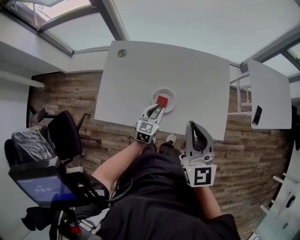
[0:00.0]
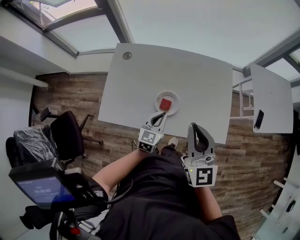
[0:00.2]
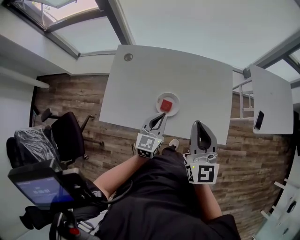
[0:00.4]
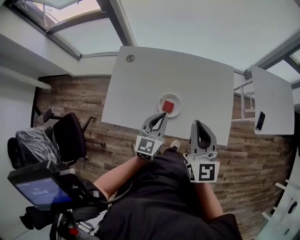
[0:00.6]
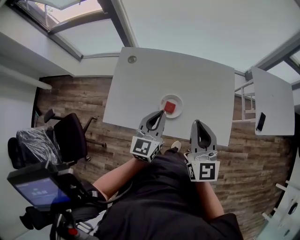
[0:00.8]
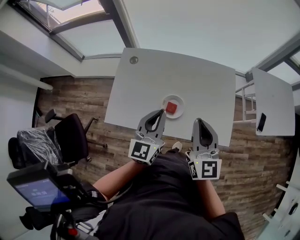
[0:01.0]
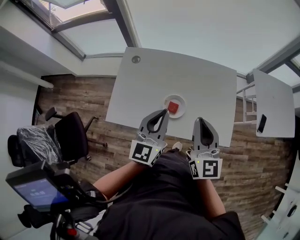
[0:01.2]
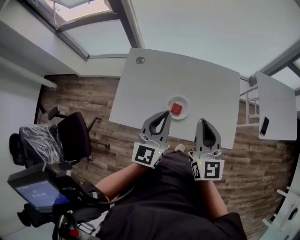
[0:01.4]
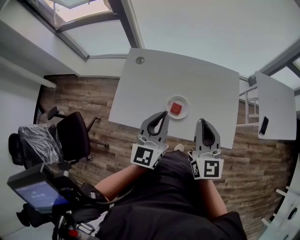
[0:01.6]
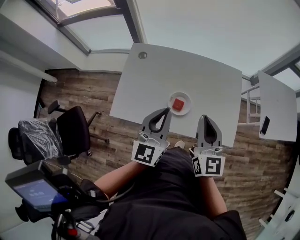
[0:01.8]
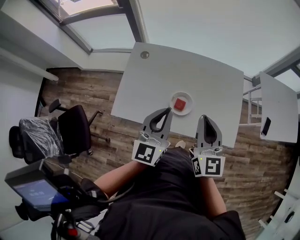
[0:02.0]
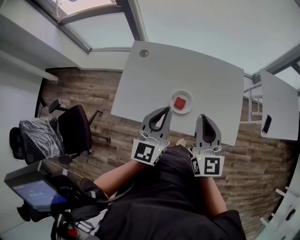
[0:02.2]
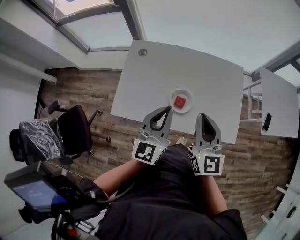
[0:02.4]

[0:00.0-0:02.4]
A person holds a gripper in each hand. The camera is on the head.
0:00.0 to 0:01.2: The left gripper is displaced upward by about 20 cm, and turns by about 20 degrees.
0:01.2 to 0:02.4: The left gripper changes place by some 5 cm, while the right gripper goes approximately 5 cm to the left.

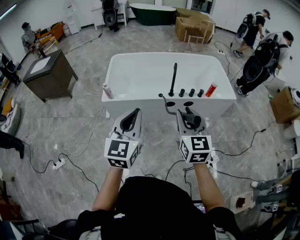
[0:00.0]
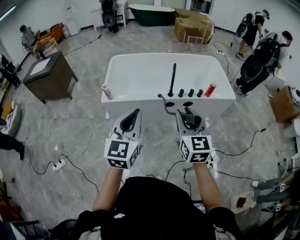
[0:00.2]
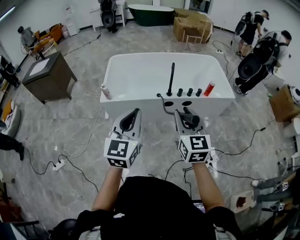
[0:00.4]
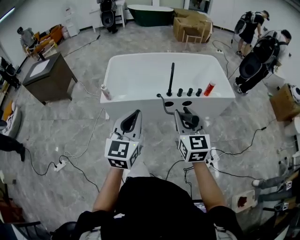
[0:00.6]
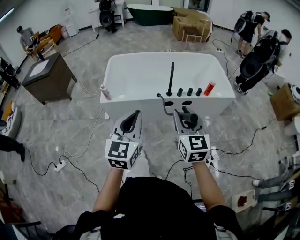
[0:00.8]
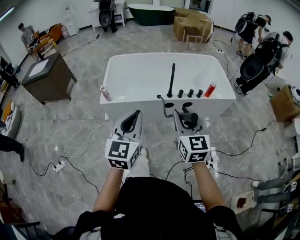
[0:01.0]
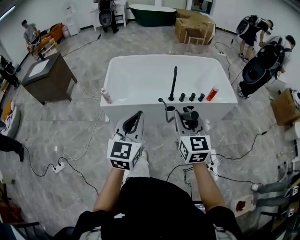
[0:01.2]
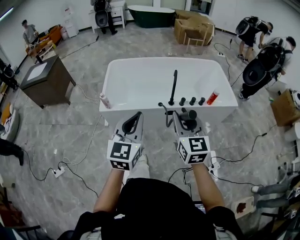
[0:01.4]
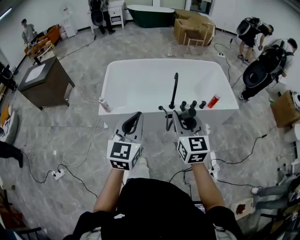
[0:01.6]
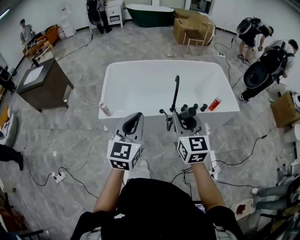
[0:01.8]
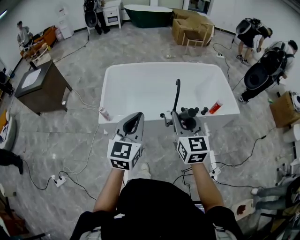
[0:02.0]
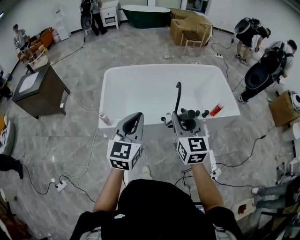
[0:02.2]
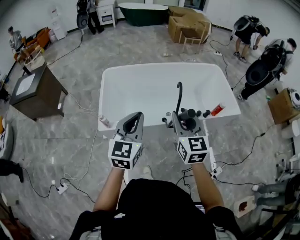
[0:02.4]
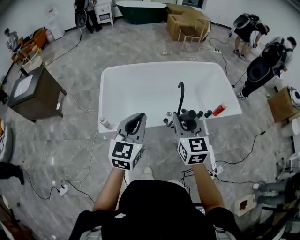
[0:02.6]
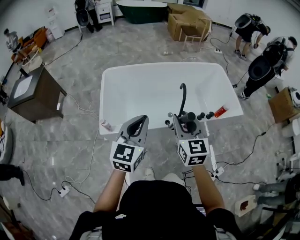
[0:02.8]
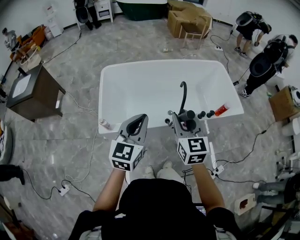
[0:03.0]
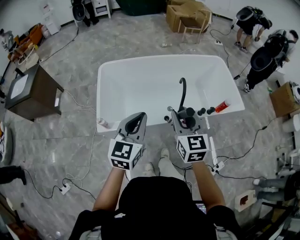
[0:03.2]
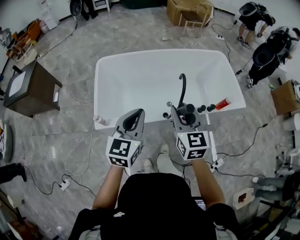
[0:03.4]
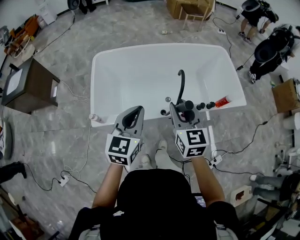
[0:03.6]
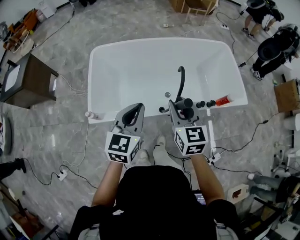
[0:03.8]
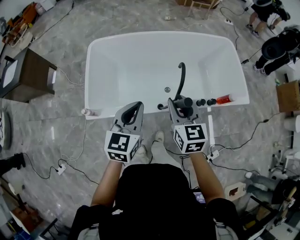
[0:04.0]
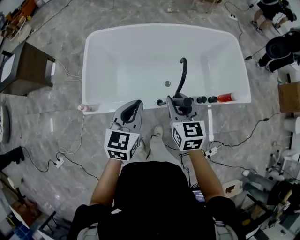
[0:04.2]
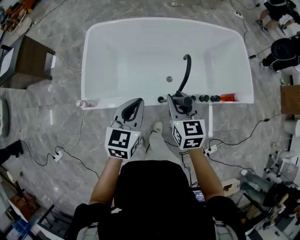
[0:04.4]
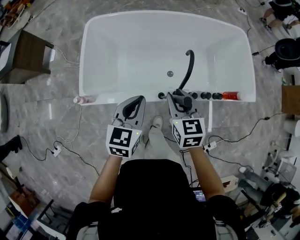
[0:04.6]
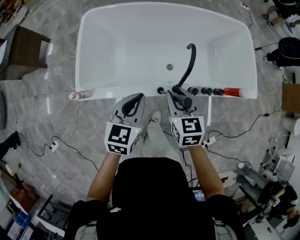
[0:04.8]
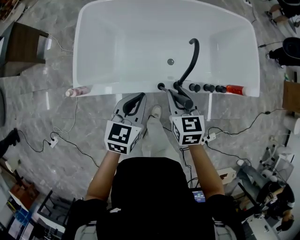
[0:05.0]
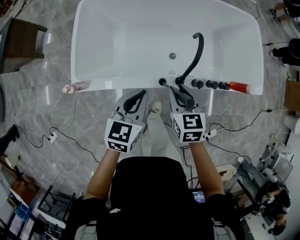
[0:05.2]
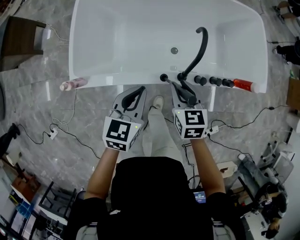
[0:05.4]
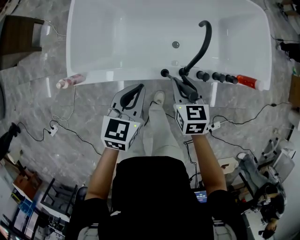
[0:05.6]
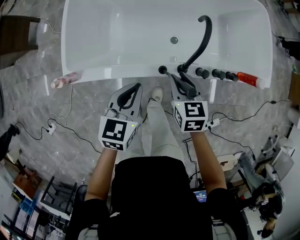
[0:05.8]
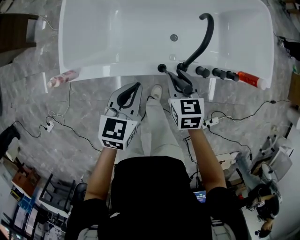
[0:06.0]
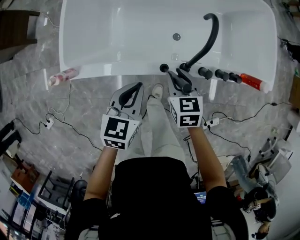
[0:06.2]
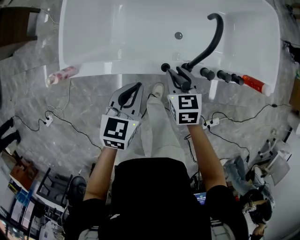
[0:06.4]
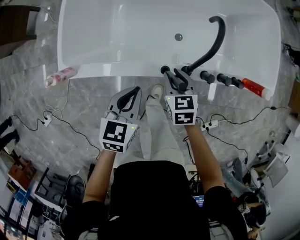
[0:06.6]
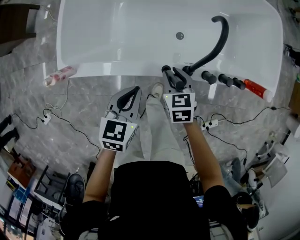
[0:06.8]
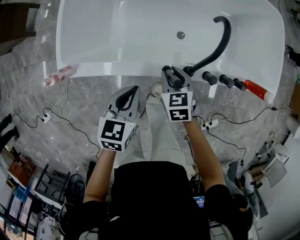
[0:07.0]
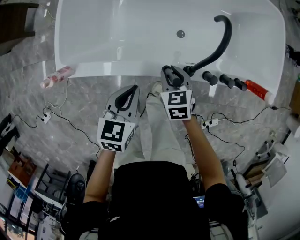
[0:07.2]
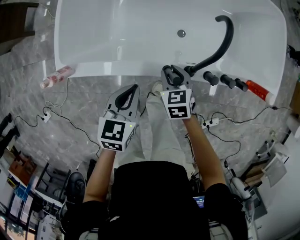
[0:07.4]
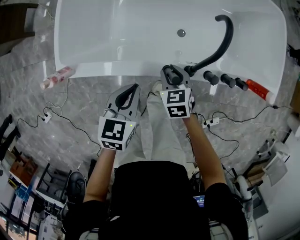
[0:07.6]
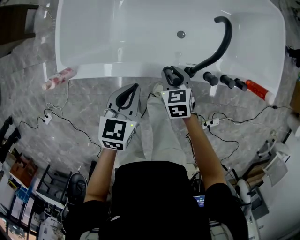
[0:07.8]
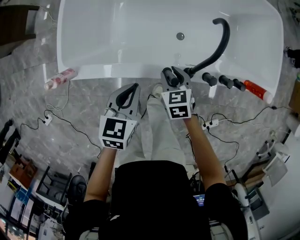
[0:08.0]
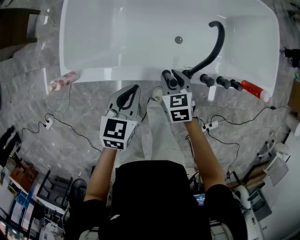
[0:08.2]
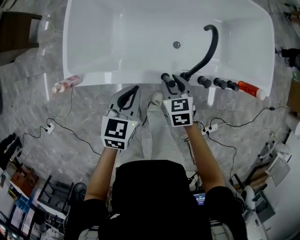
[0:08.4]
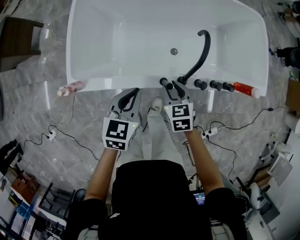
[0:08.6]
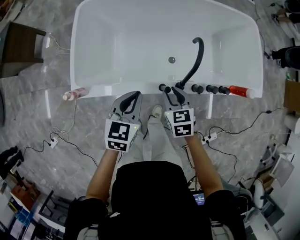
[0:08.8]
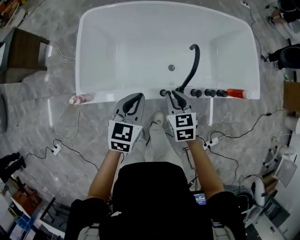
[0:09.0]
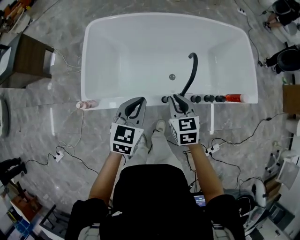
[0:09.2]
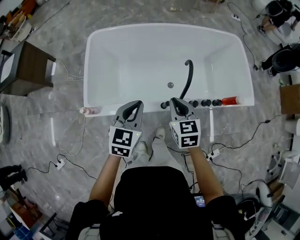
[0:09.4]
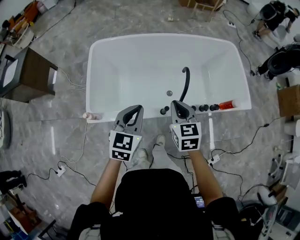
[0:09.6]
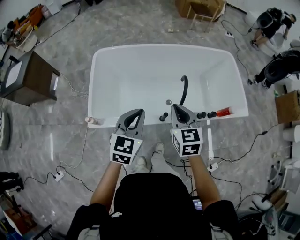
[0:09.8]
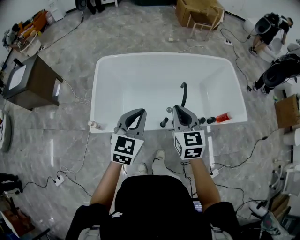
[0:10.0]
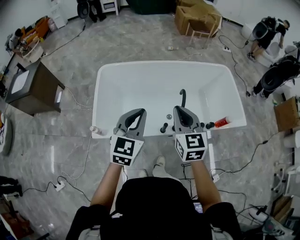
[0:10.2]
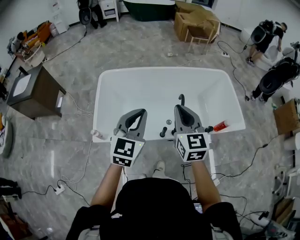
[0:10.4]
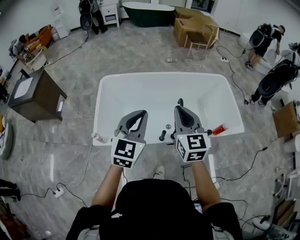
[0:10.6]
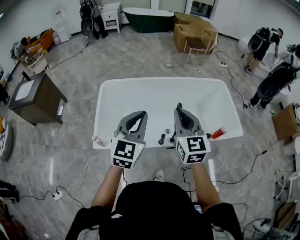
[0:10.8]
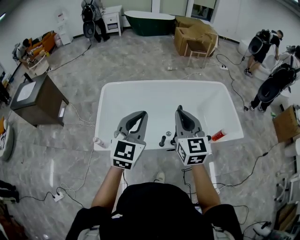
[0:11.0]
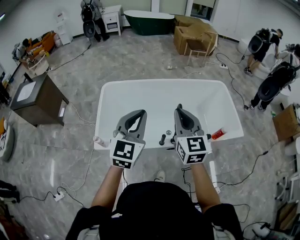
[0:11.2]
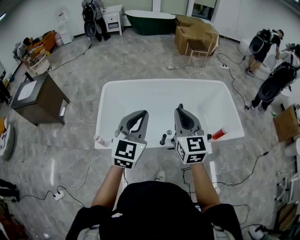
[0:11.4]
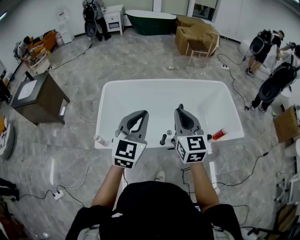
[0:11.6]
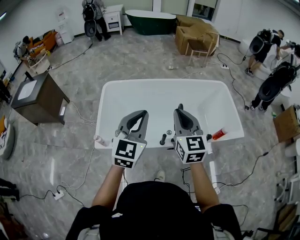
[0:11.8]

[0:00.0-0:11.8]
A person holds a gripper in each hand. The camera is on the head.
0:00.0 to 0:01.4: Both grippers travel together forward, about 10 cm.
0:01.4 to 0:03.0: The two grippers go some 30 cm forward and to the left.
0:03.0 to 0:04.4: Both grippers move forward and downward, roughly 25 cm.
0:04.4 to 0:06.0: The two grippers go about 20 cm downward.
0:06.0 to 0:07.4: The right gripper is displaced downward by about 10 cm; the left gripper travels downward by some 5 cm.
0:07.4 to 0:08.8: The two grippers go roughly 15 cm upward.
0:08.8 to 0:10.4: The two grippers go approximately 35 cm upward. The left gripper rotates about 30 degrees, while the right gripper tilts its fingers some 40 degrees upward, and closes its fingers.
0:10.4 to 0:11.8: The left gripper moves upward, about 5 cm.

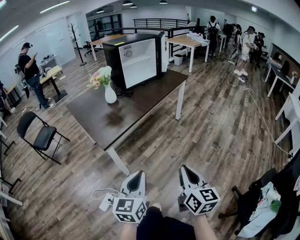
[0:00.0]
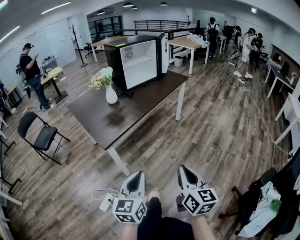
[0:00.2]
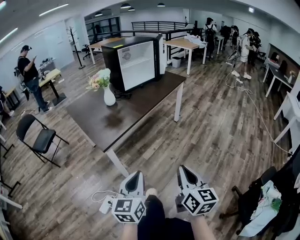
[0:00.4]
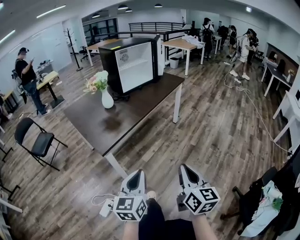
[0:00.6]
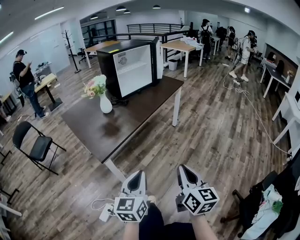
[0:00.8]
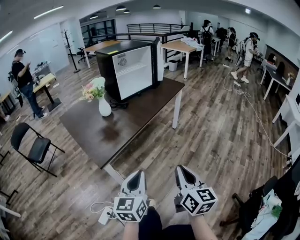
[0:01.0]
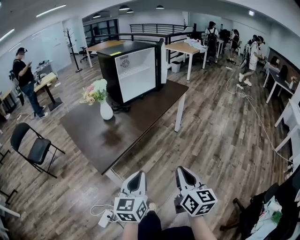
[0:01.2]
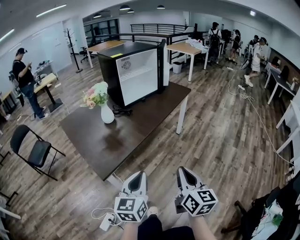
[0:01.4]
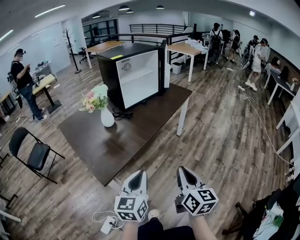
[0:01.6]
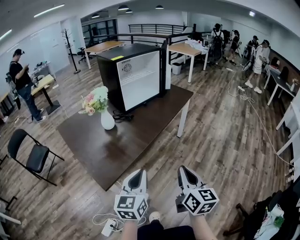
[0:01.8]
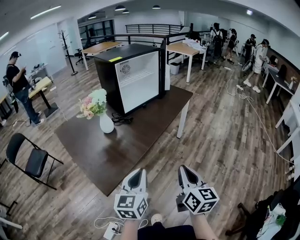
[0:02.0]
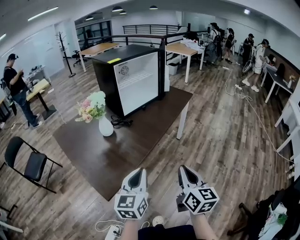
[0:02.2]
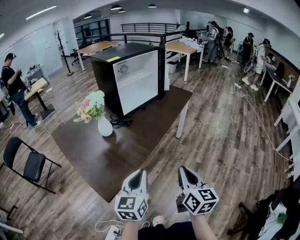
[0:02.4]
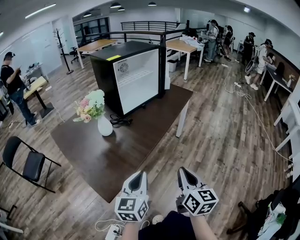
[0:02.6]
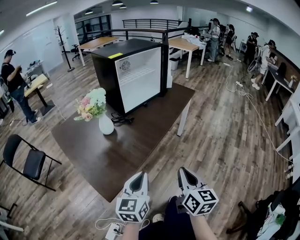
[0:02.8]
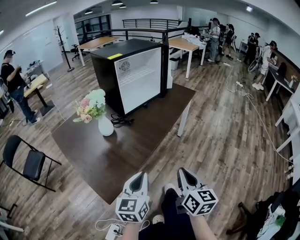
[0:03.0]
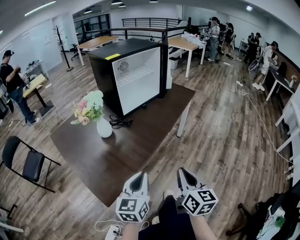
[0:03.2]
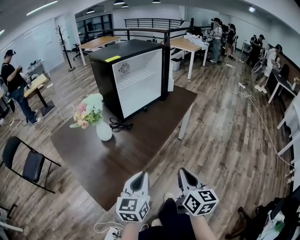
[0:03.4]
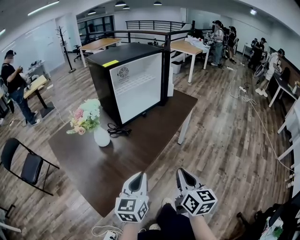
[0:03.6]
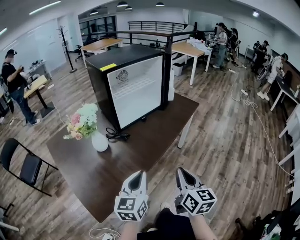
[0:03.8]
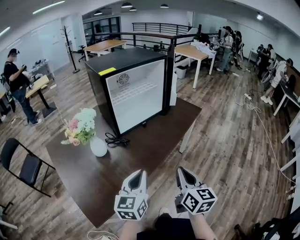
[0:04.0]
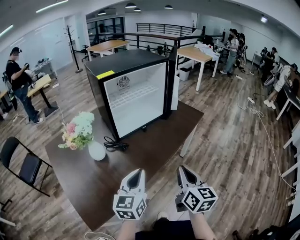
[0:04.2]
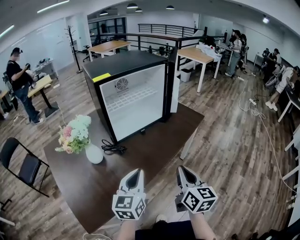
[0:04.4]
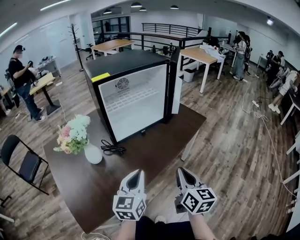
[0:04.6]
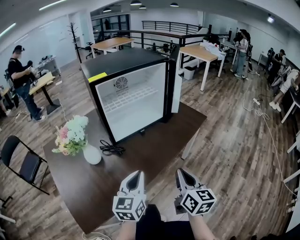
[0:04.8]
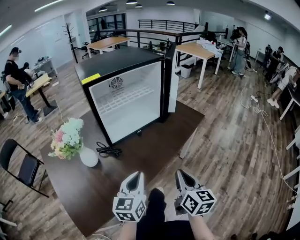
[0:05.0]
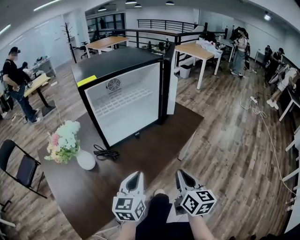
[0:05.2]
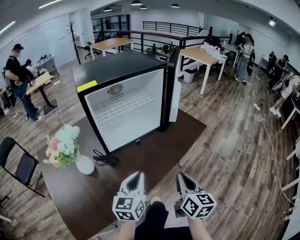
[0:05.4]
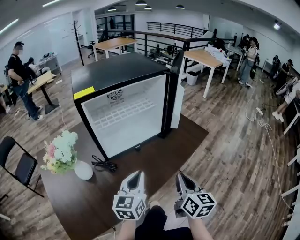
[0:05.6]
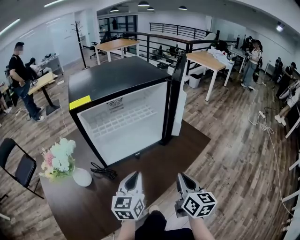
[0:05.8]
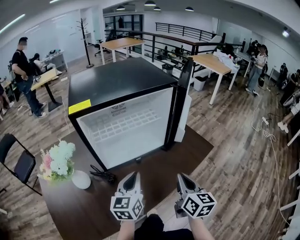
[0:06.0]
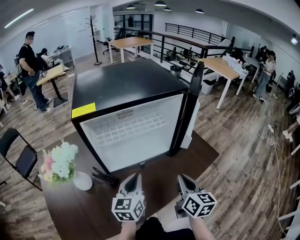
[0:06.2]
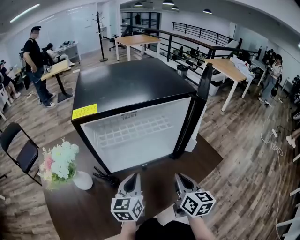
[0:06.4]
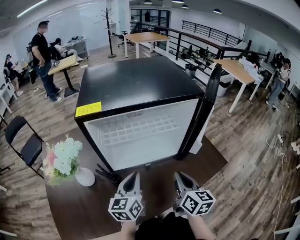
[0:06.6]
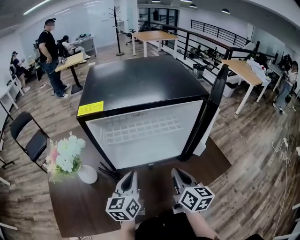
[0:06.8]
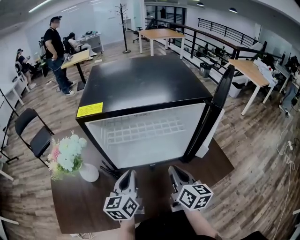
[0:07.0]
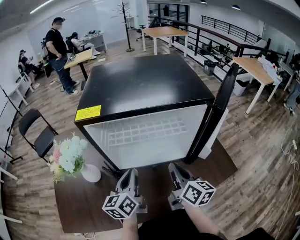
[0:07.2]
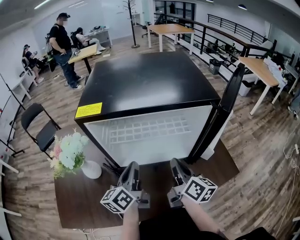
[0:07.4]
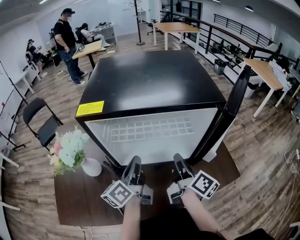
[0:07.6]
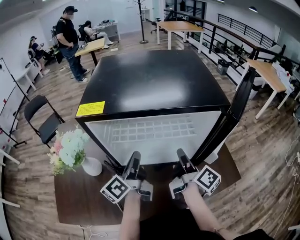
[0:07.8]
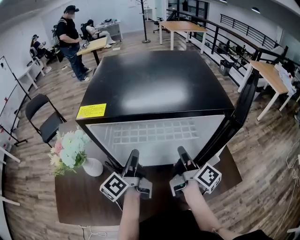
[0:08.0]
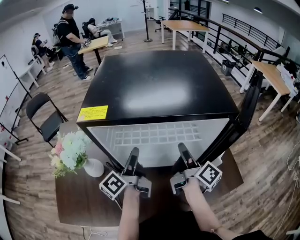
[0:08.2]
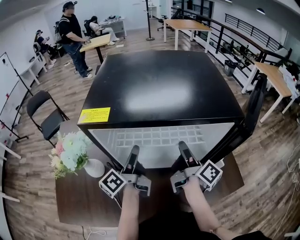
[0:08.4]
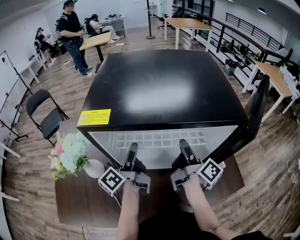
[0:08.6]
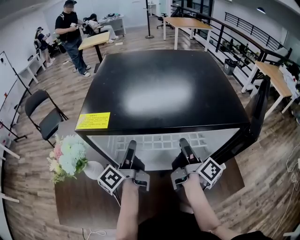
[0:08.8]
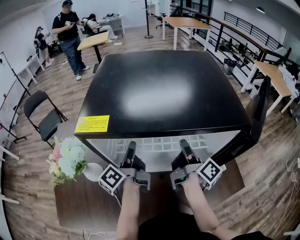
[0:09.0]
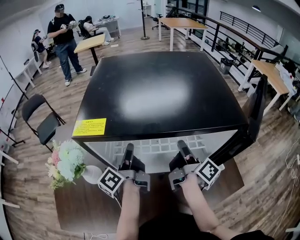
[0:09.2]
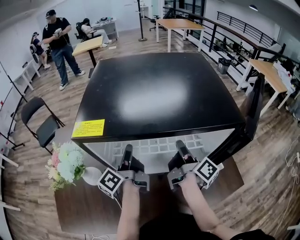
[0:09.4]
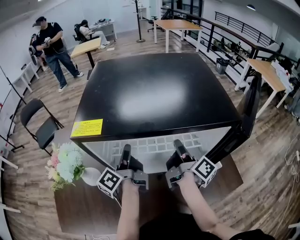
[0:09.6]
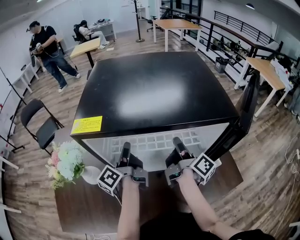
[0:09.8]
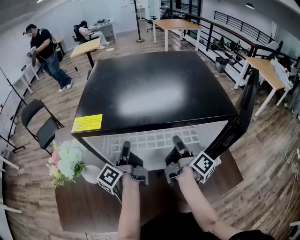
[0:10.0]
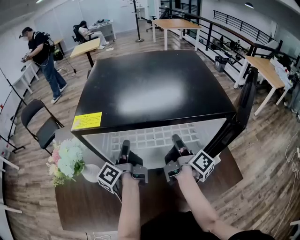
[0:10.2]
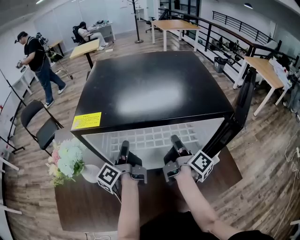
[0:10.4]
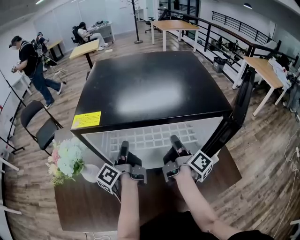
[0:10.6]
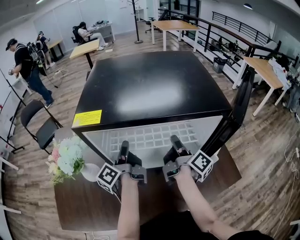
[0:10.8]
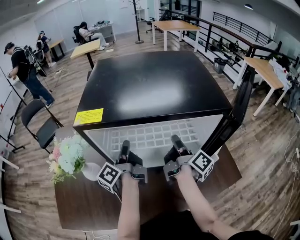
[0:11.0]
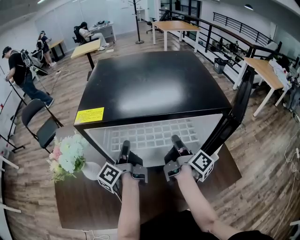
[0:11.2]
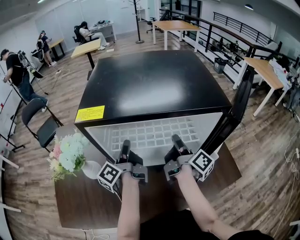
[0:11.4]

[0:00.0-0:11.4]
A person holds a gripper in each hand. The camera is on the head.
0:00.0 to 0:01.4: The two grippers go approximately 20 cm forward.
0:01.4 to 0:02.8: Both grippers move forward and to the left, roughly 15 cm.
0:02.8 to 0:04.2: The grippers both shift forward by roughly 25 cm.
0:04.2 to 0:05.6: Both grippers travel together forward, roughly 20 cm.
0:05.6 to 0:07.2: The right gripper changes place by some 25 cm, and changes its angle by roughly 30 degrees, while the left gripper moves some 15 cm, and rotates about 40 degrees.
0:07.2 to 0:08.6: Both grippers move forward, some 15 cm. The left gripper rotates around the line of its fingers by about 40 degrees, counterclockwise from behind, and opens; the right gripper changes its angle by roughly 40 degrees, and opens up.
0:08.6 to 0:10.0: The left gripper closes up.
0:10.0 to 0:11.4: There are only small adjustments of the grippers.
